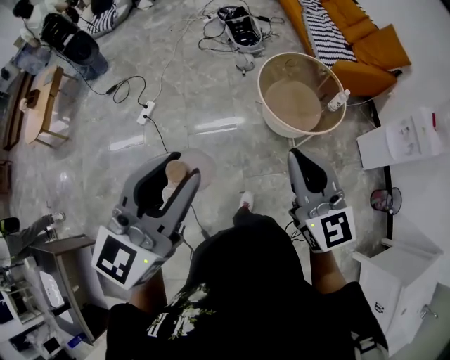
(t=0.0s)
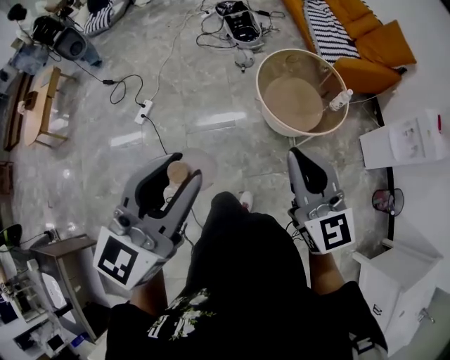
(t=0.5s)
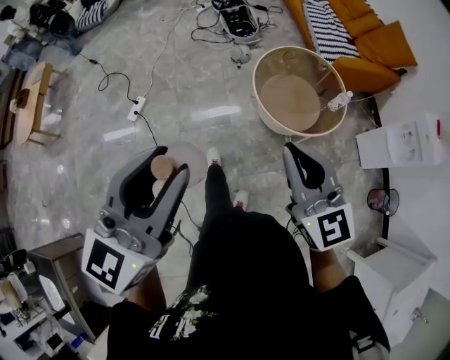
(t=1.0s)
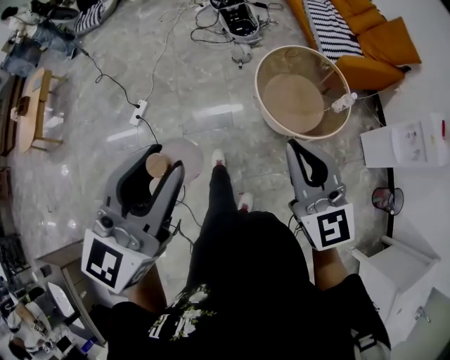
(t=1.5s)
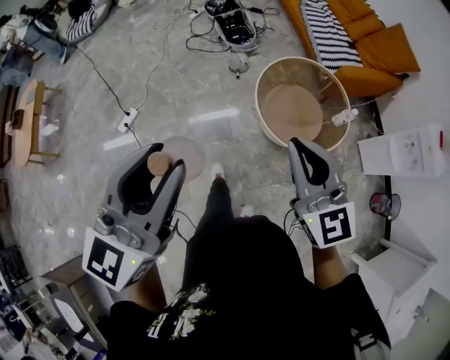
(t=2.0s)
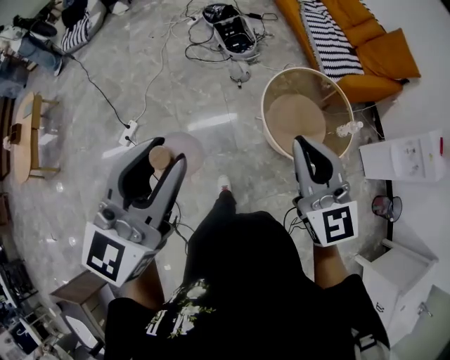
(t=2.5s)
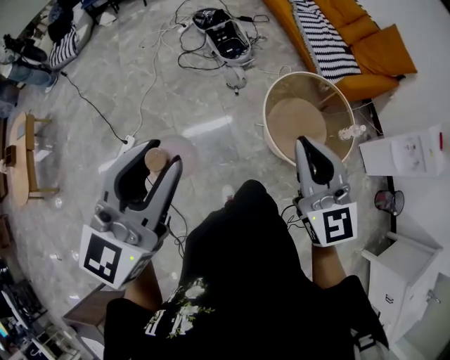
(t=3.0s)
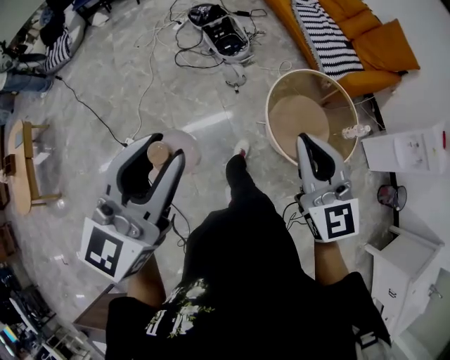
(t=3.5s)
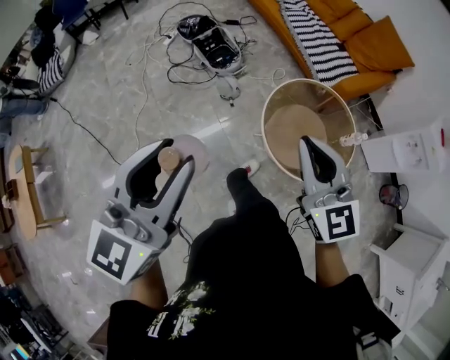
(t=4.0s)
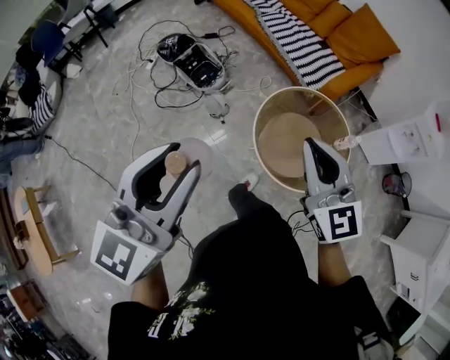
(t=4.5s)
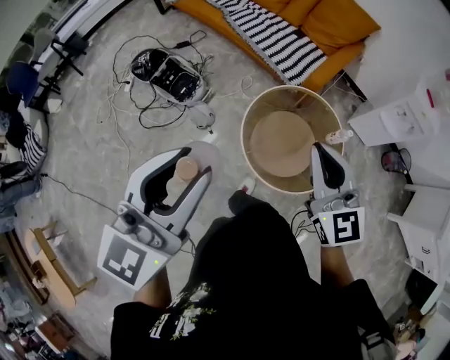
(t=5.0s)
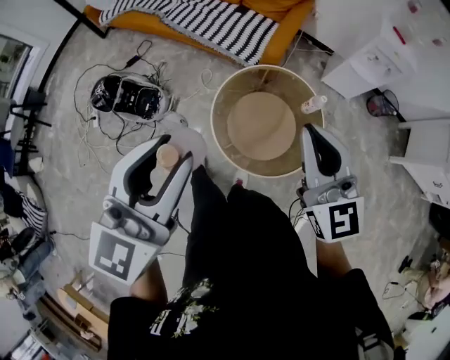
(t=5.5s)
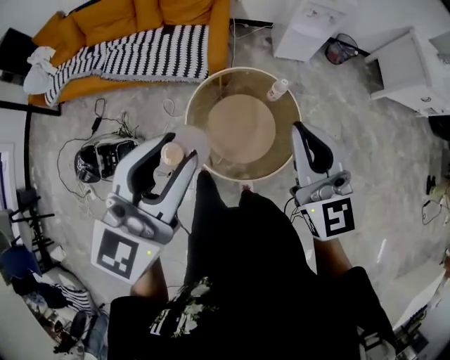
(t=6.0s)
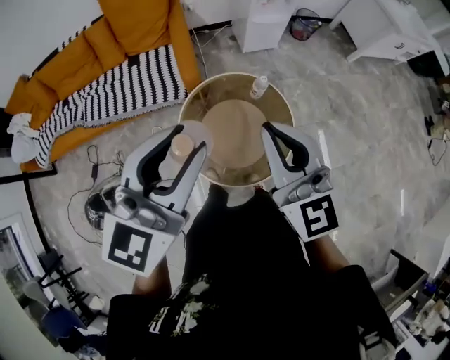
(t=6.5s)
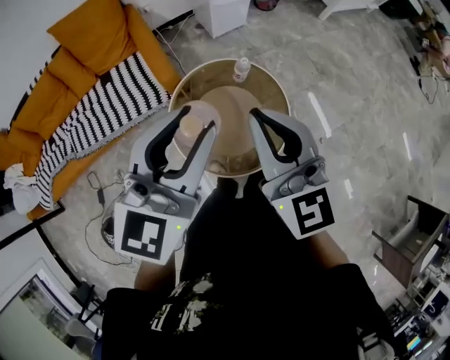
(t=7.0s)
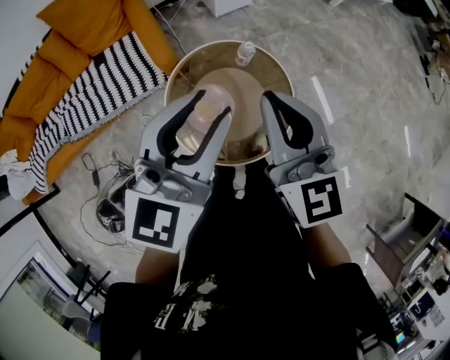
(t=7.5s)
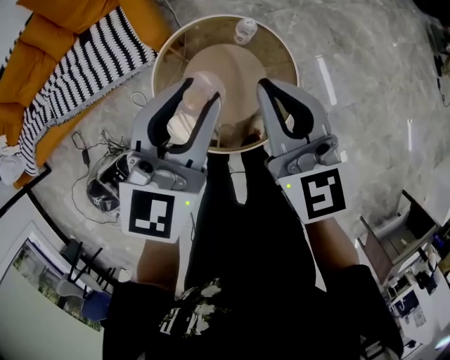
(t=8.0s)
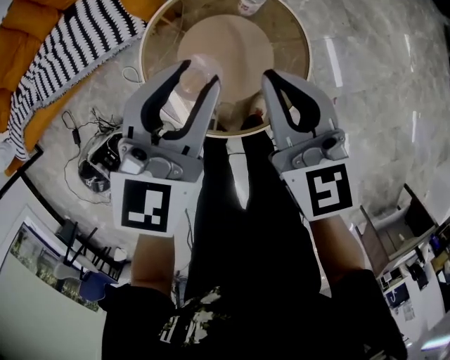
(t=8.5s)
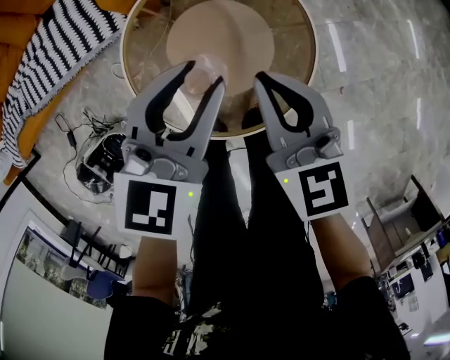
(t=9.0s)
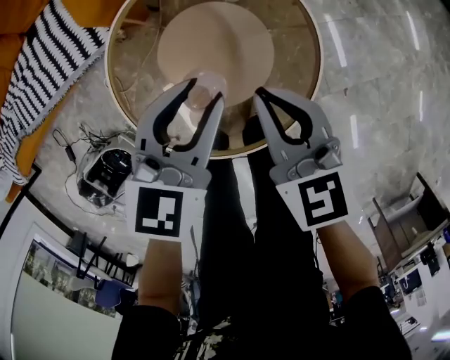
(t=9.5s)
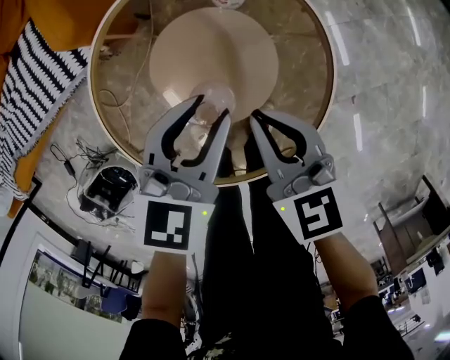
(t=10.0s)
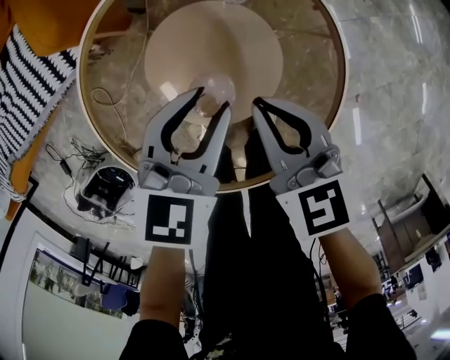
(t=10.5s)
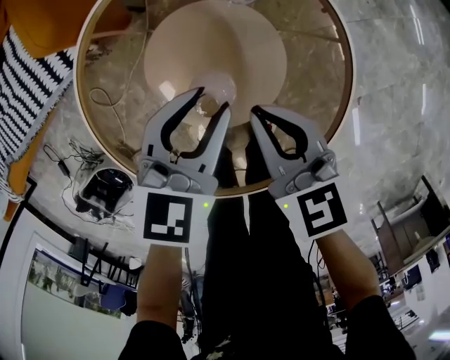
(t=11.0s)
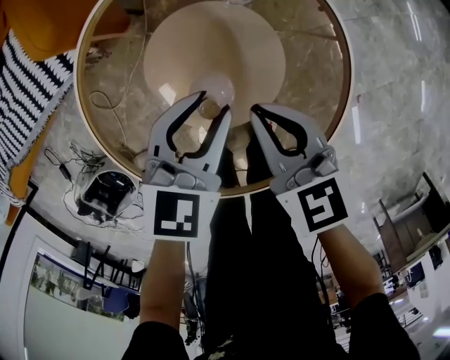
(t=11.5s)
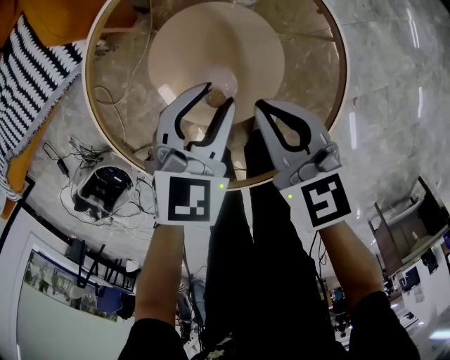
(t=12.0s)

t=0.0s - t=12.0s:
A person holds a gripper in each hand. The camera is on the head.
t=0.0s - t=2.0s: Both grippers travel together forward, about 25 cm.
t=2.0s - t=4.0s: The grippers both shift forward and to the left by approximately 30 cm.
t=4.0s - t=6.0s: The left gripper shifts by roughly 50 cm, and rotates some 60 degrees. Meanwhile the right gripper moves approximately 35 cm, and changes its angle by approximately 60 degrees.
t=6.0s - t=8.0s: The right gripper shifts some 15 cm downward, and changes its angle by approximately 30 degrees, while the left gripper changes place by approximately 30 cm, and turns by some 20 degrees.
t=8.0s - t=10.0s: Both grippers move downward, about 40 cm. The right gripper turns by roughly 20 degrees; the left gripper rotates some 20 degrees.
t=10.0s - t=12.0s: The left gripper is displaced downward by roughly 5 cm.

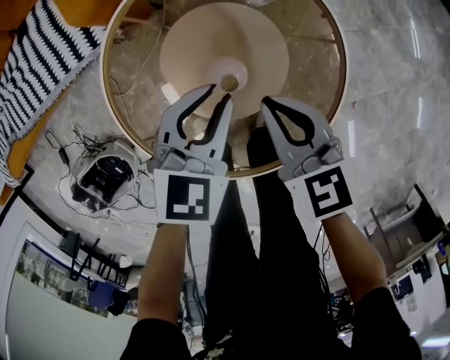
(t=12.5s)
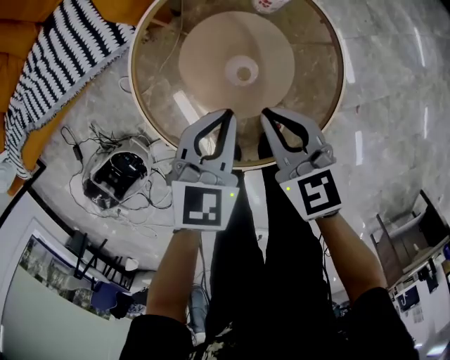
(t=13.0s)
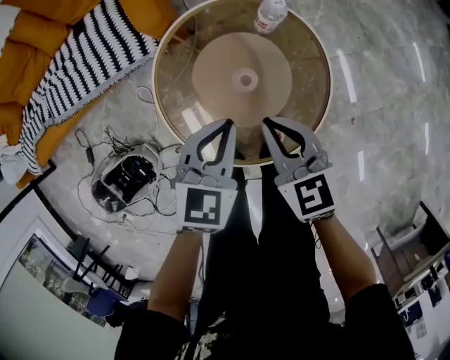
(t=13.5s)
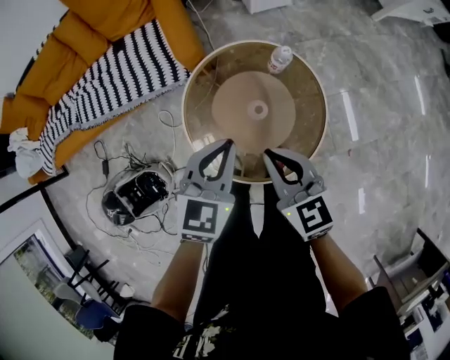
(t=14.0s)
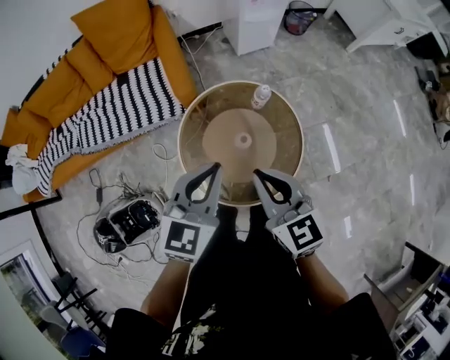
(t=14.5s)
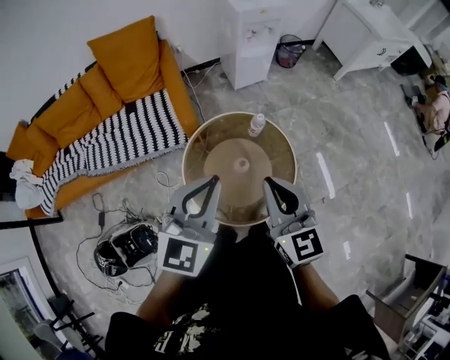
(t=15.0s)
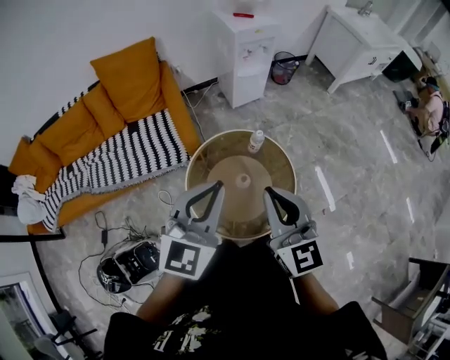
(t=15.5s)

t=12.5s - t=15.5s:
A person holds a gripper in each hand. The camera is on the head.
t=12.5s - t=14.0s: Both grippers travel together upward, approximately 30 cm.
t=14.0s - t=15.5s: The two grippers go about 30 cm upward. The right gripper turns by roughly 30 degrees; the left gripper changes its angle by approximately 20 degrees.

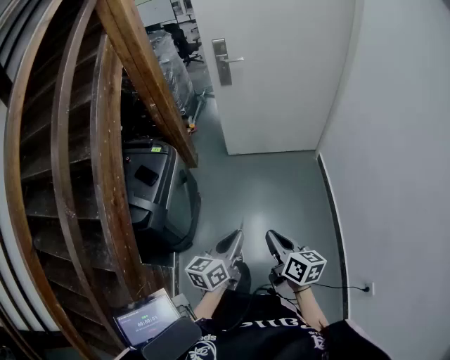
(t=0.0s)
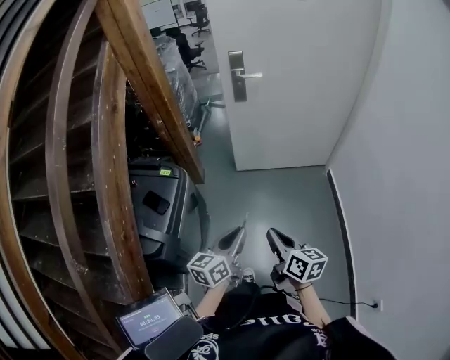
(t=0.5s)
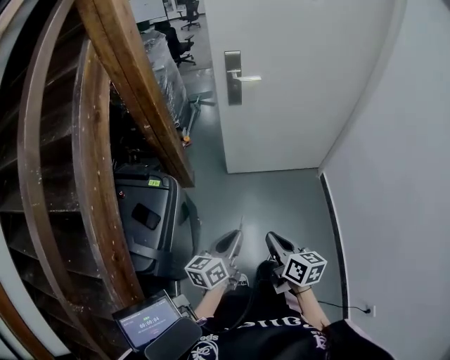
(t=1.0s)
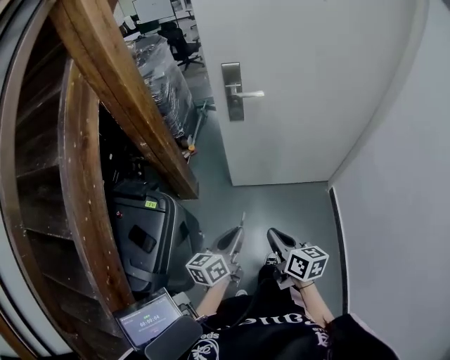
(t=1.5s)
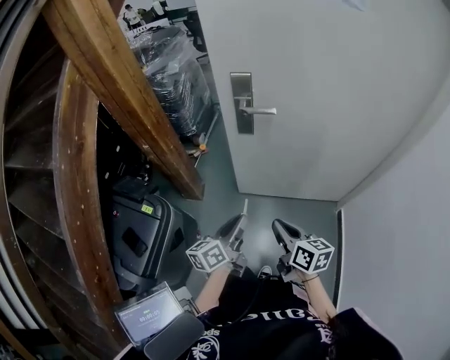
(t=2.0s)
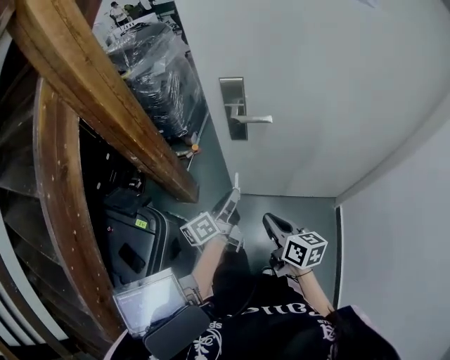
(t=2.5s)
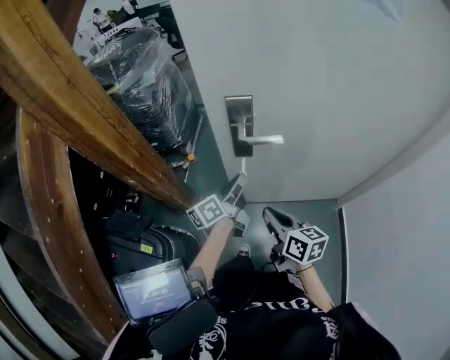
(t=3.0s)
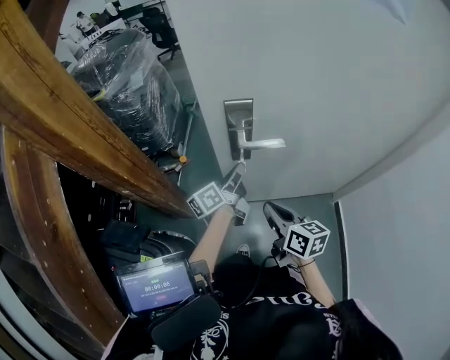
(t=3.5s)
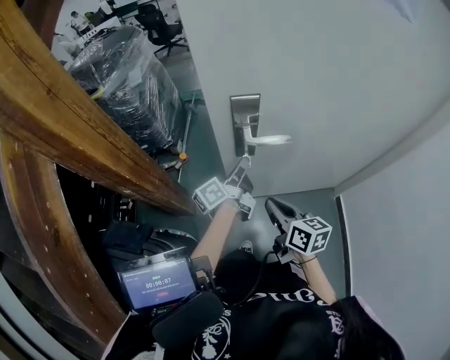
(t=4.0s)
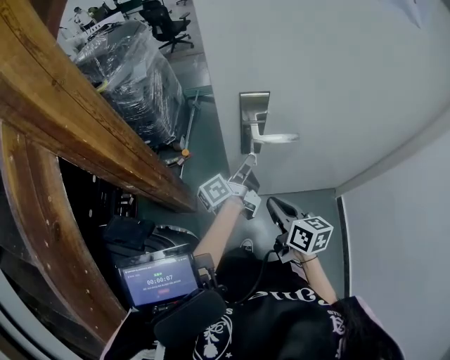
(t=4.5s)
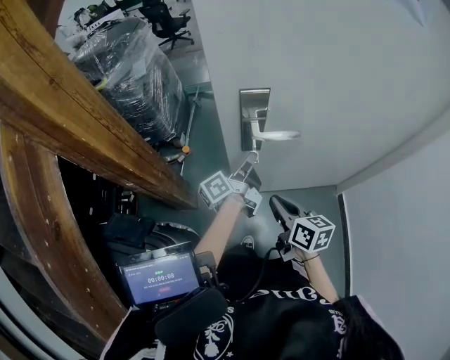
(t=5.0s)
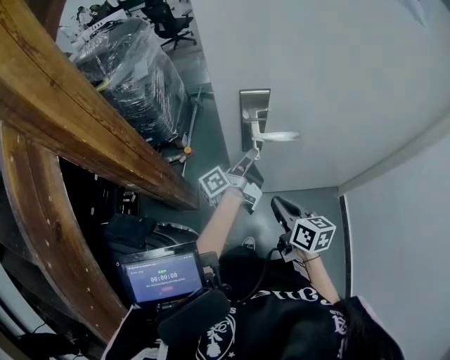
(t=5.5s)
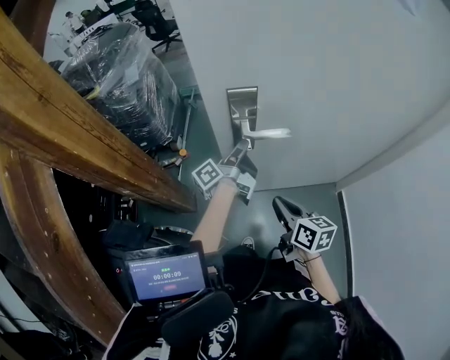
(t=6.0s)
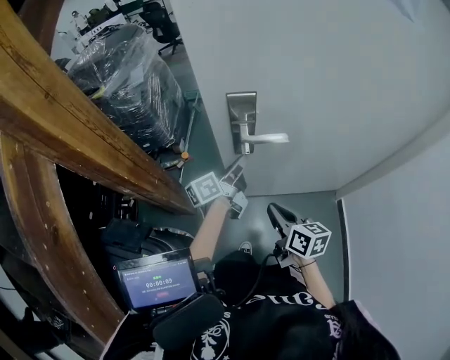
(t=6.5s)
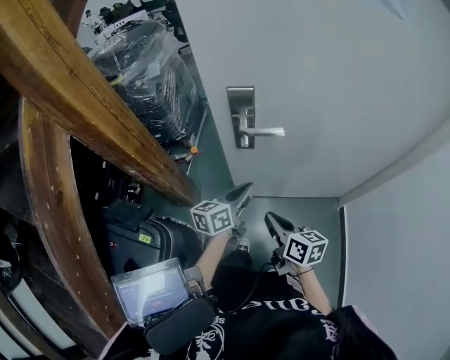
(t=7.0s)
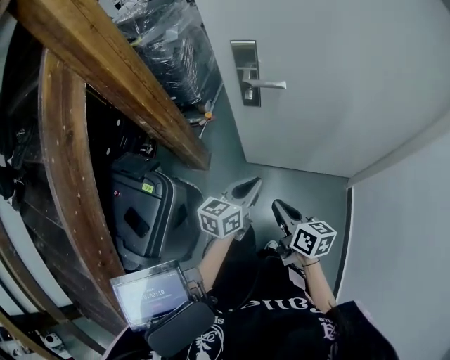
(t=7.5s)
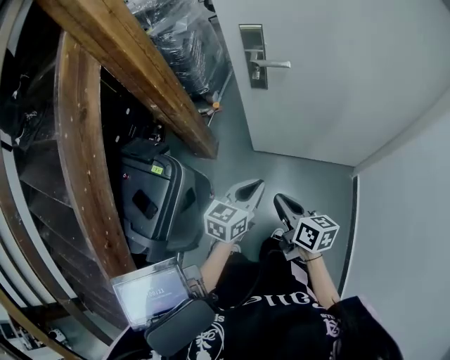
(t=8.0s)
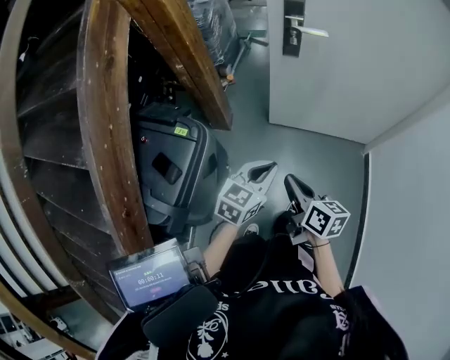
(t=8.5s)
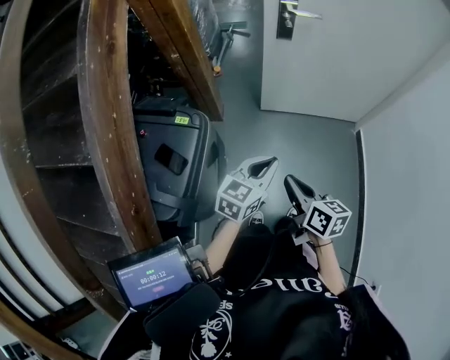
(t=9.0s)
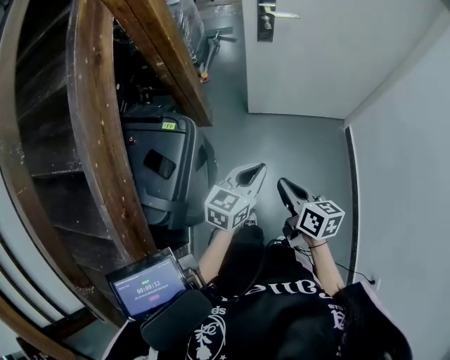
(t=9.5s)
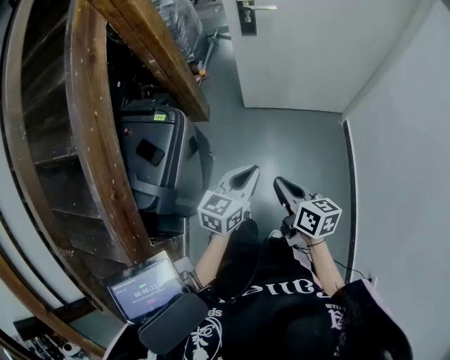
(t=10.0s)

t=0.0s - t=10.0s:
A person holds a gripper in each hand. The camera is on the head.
t=0.0s - t=2.0s: The two grippers travel together, forward, approximately 60 cm.
t=2.0s - t=4.0s: The right gripper travels forward by about 25 cm; the left gripper shifts some 35 cm forward, and swivels roughly 30 degrees.
t=4.0s - t=6.0s: There are only small adjustments of the grippers.
t=6.0s - t=8.0s: The left gripper moves backward, some 40 cm, and twists some 70 degrees clockwise, seen from behind, while the right gripper shifts some 25 cm backward.
t=8.0s - t=10.0s: Both grippers move backward, about 25 cm.

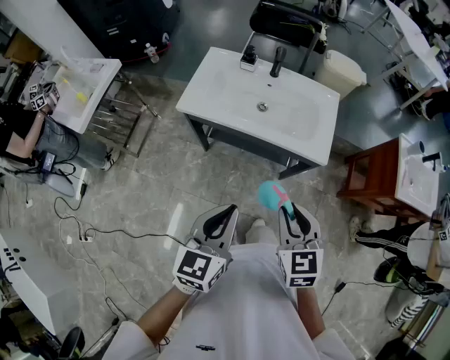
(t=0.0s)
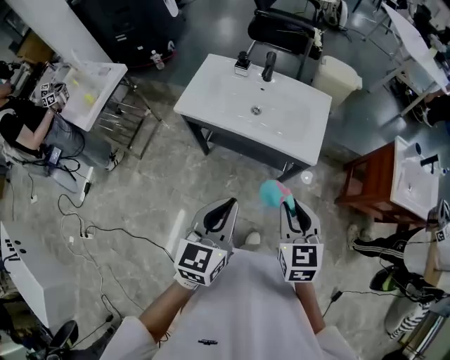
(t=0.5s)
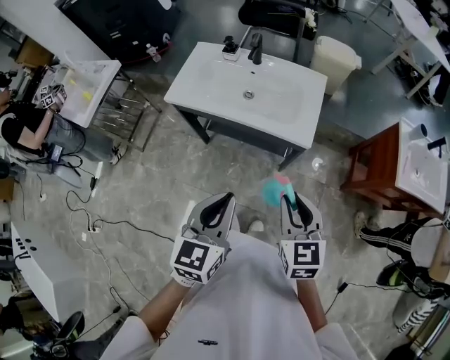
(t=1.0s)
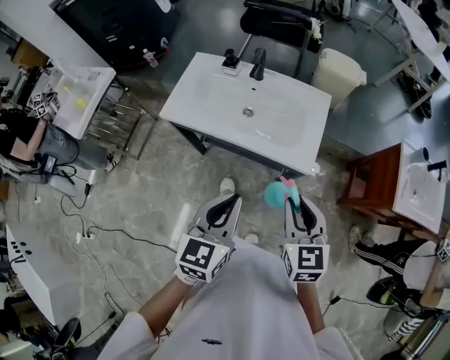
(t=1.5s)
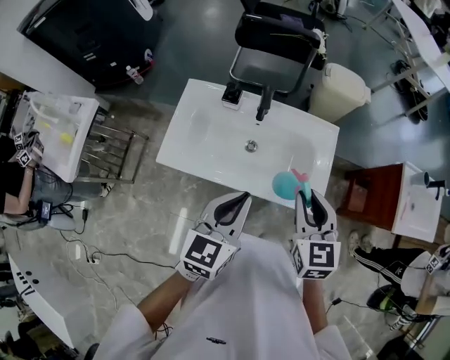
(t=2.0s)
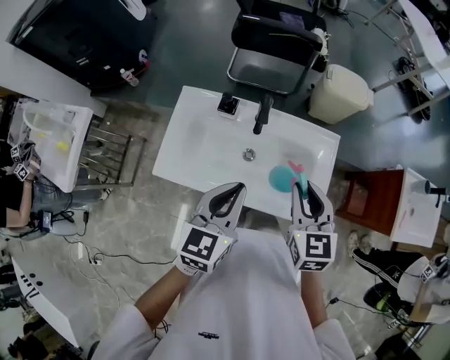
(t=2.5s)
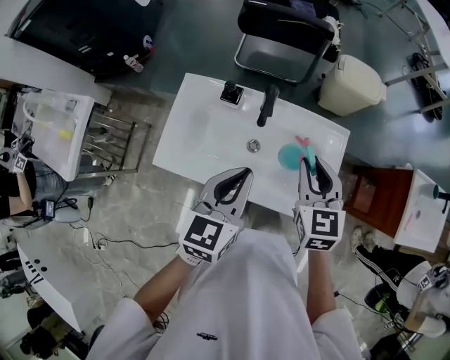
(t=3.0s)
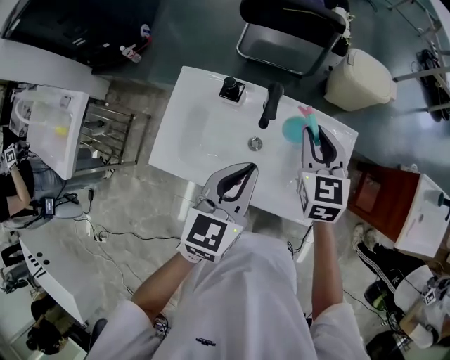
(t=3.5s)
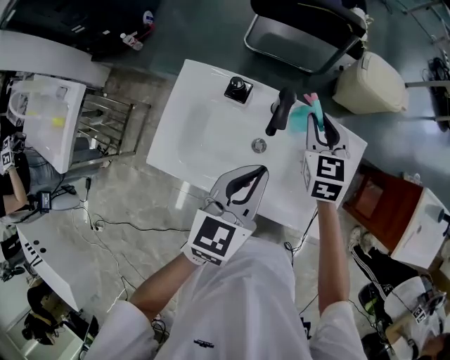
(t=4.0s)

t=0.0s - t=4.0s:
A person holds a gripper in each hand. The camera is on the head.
t=0.0s - t=2.0s: Both grippers move forward, roughly 30 cm.
t=2.0s - t=4.0s: The right gripper is displaced forward and downward by about 35 cm. The left gripper is displaced forward by roughly 20 cm.
